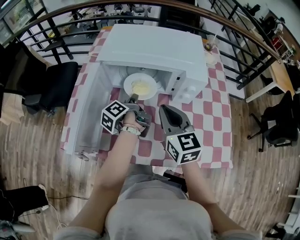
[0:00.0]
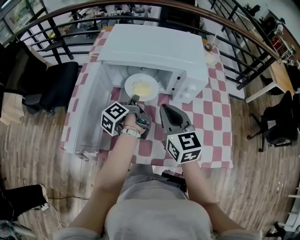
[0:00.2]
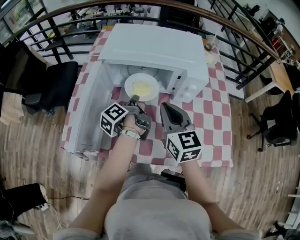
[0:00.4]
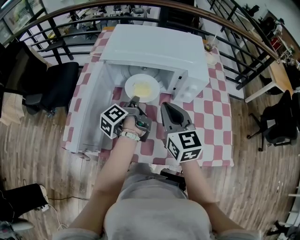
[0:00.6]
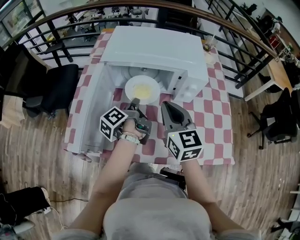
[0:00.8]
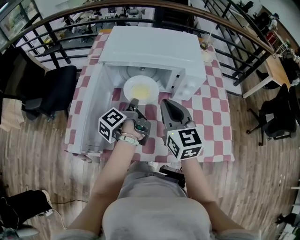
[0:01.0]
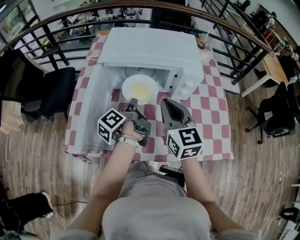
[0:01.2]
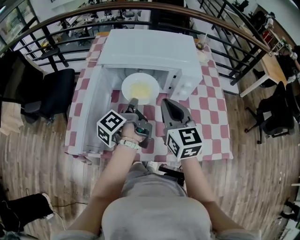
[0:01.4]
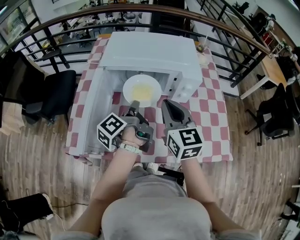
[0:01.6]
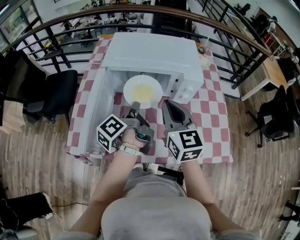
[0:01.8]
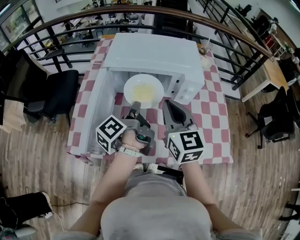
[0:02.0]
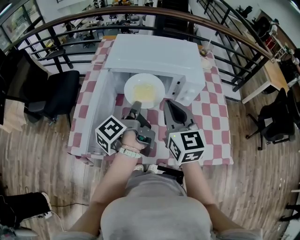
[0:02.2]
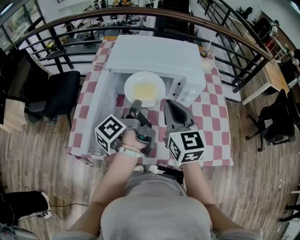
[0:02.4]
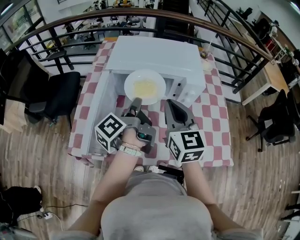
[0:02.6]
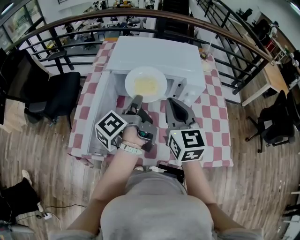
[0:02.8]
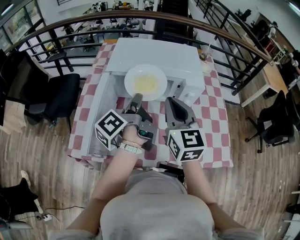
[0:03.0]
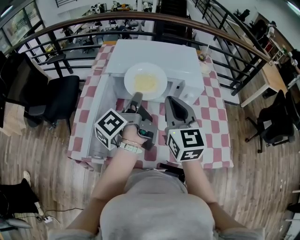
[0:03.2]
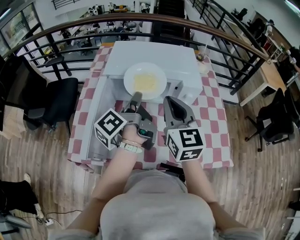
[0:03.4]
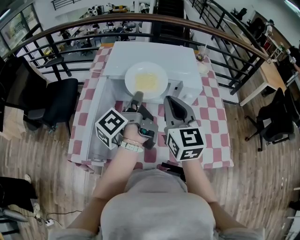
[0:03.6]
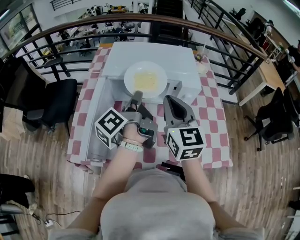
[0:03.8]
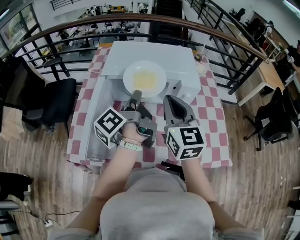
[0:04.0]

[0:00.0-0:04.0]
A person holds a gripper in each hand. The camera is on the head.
0:00.0 to 0:01.4: The left gripper heads upward and backward, covering approximately 10 cm.
0:01.4 to 0:02.6: The left gripper goes some 5 cm upward.
0:02.6 to 0:04.0: There are only small adjustments of the grippers.

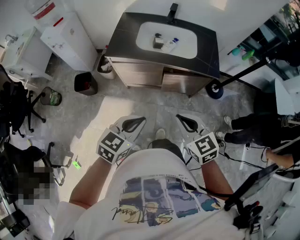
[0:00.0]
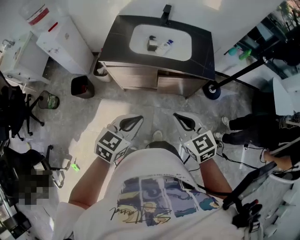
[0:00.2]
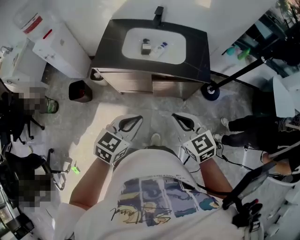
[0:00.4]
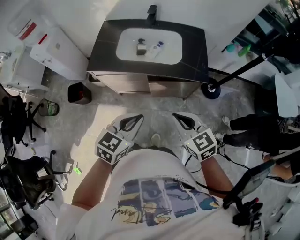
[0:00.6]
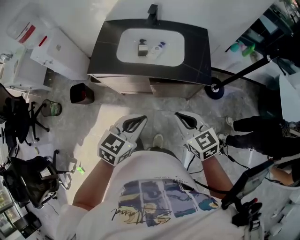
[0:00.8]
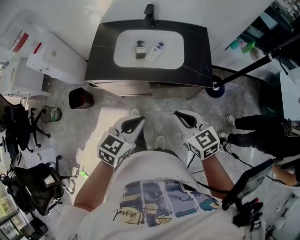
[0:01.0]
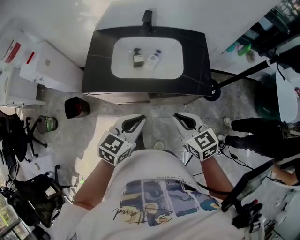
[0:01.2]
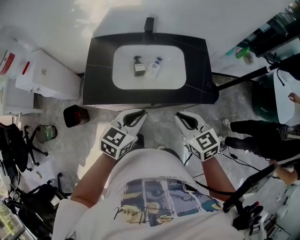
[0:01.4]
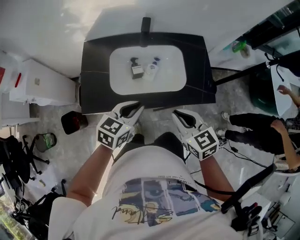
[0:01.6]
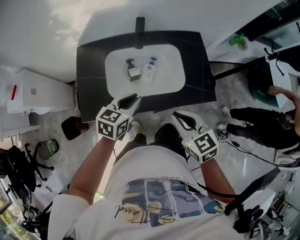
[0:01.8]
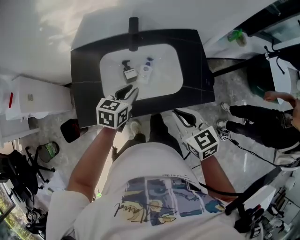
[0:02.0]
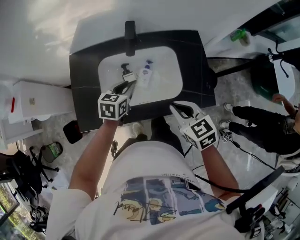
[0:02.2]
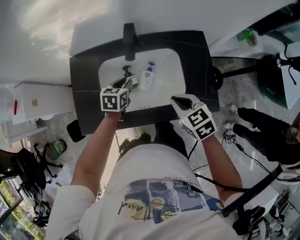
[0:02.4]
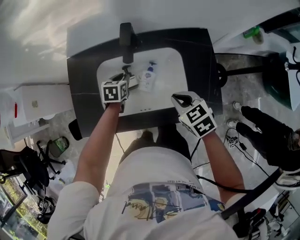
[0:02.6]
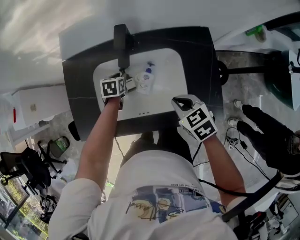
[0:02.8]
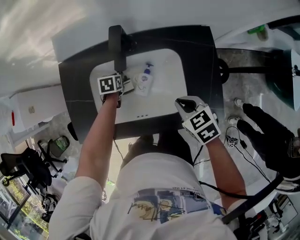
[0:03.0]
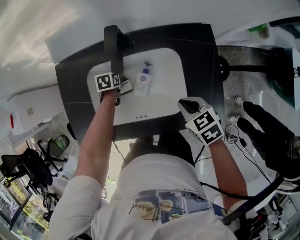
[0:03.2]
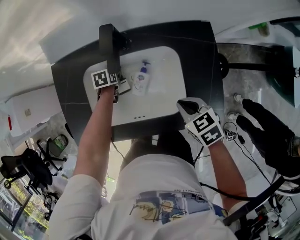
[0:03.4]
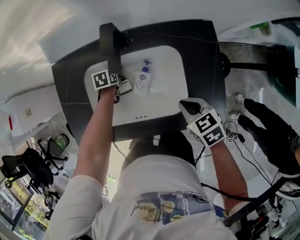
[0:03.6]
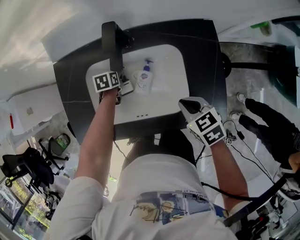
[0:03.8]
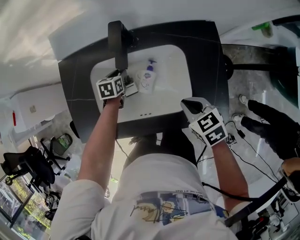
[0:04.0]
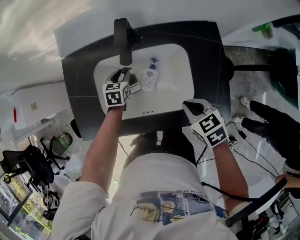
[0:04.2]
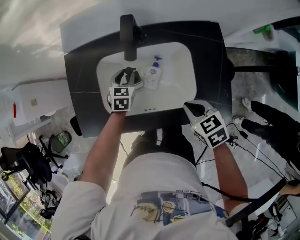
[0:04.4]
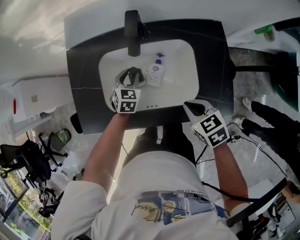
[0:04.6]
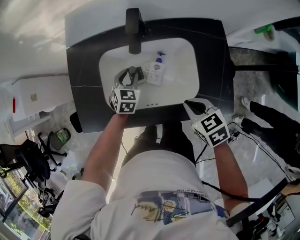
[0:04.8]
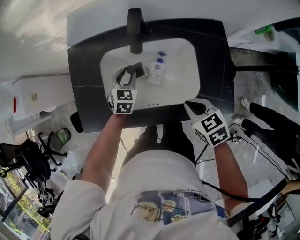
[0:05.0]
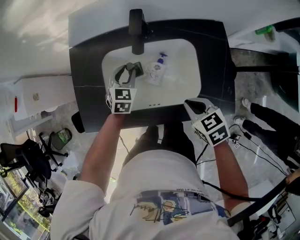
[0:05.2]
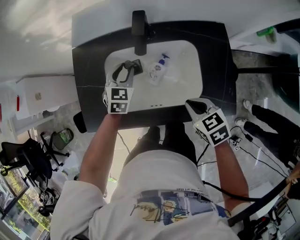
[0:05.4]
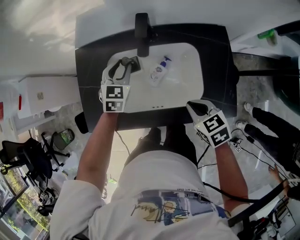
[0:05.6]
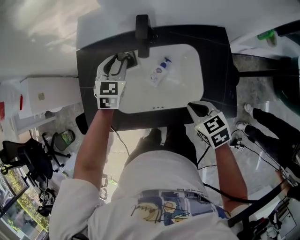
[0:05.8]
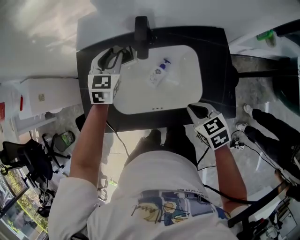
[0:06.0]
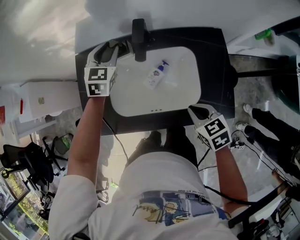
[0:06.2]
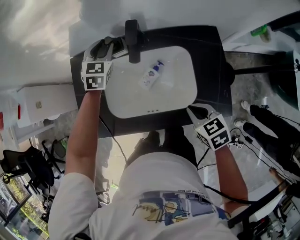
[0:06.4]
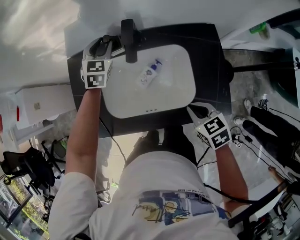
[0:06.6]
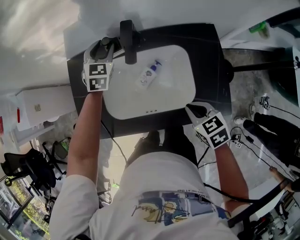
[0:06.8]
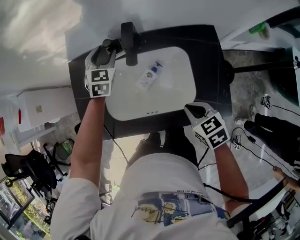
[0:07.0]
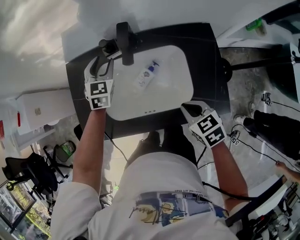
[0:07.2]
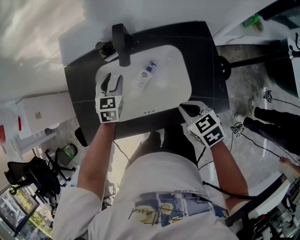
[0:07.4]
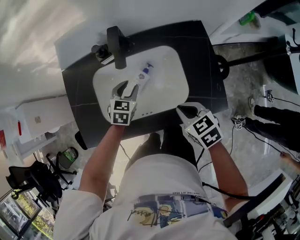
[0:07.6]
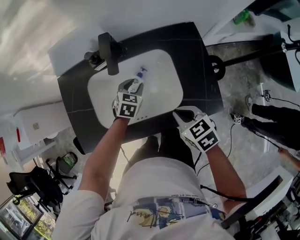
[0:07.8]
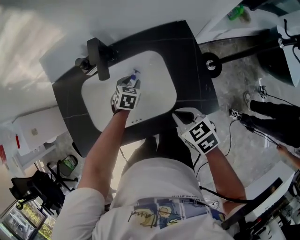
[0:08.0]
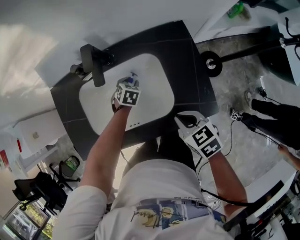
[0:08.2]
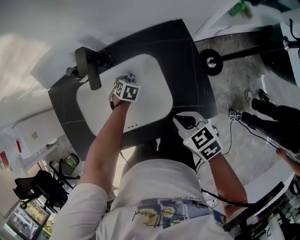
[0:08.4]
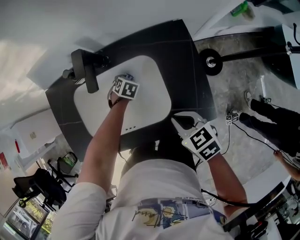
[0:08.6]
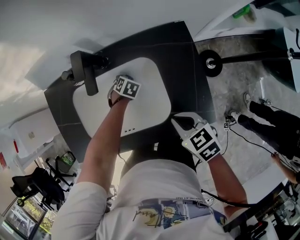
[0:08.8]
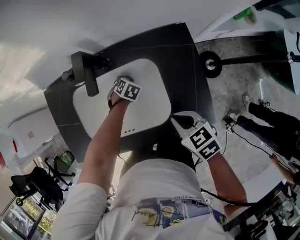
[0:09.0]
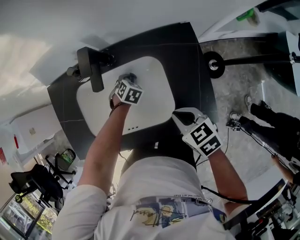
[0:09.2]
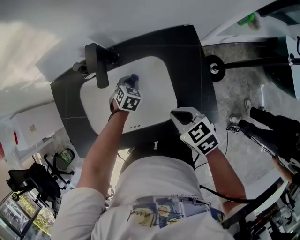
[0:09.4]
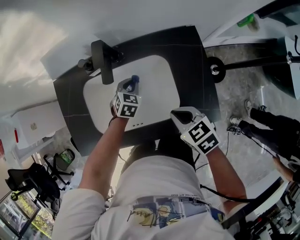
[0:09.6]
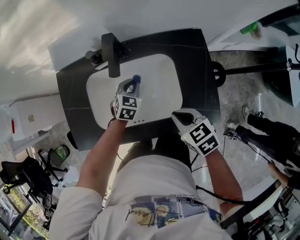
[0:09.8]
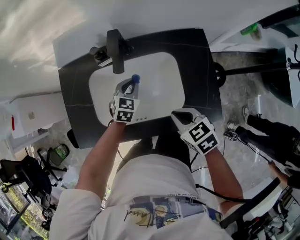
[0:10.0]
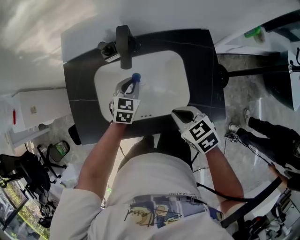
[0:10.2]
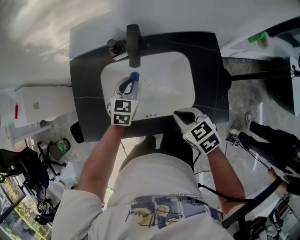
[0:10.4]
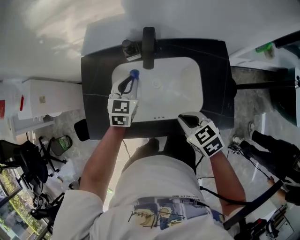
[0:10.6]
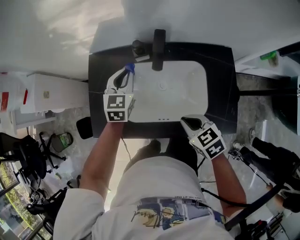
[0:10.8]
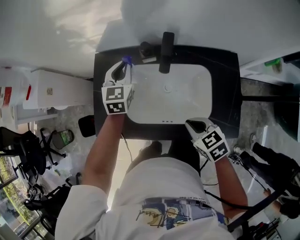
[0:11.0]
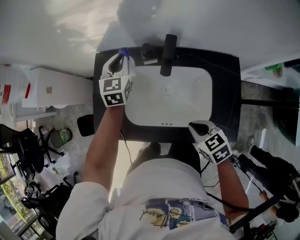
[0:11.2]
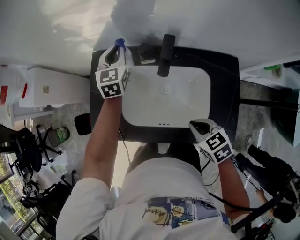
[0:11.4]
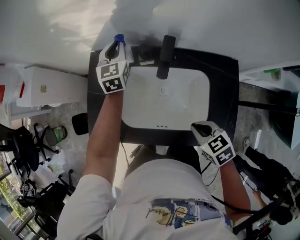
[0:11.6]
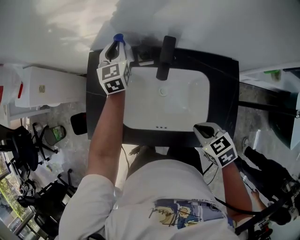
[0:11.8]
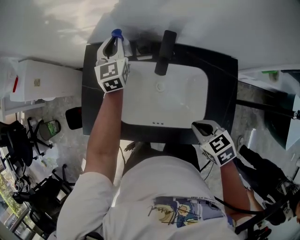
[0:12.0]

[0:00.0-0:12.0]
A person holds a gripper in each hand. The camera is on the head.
0:00.0 to 0:01.6: The grippers both shift forward by roughly 35 cm.
0:01.6 to 0:03.0: The left gripper travels forward and downward by roughly 40 cm, and tips its fingers downward by some 30 degrees. Meanwhile the right gripper travels forward, downward and to the right by some 25 cm, and swivels roughly 20 degrees.
0:03.0 to 0:04.4: The left gripper shifts some 5 cm upward, and rotates about 30 degrees.
0:04.4 to 0:06.0: The left gripper travels upward and forward by some 20 cm.
0:06.0 to 0:07.6: The left gripper shifts roughly 20 cm downward, backward and to the right.
0:07.6 to 0:09.0: The left gripper moves downward, approximately 15 cm, tilts its fingers some 30 degrees downward, and closes. The right gripper ends up some 5 cm from where it was.
0:09.0 to 0:10.4: The right gripper changes place by some 10 cm. Meanwhile the left gripper travels upward by approximately 20 cm, and angles its fingers upward, by approximately 40 degrees.
0:10.4 to 0:12.0: The left gripper moves forward and upward, about 25 cm, and rotates approximately 40 degrees.

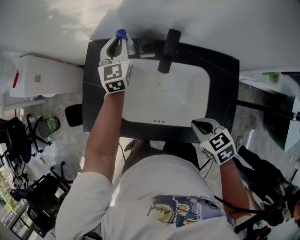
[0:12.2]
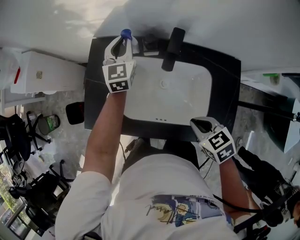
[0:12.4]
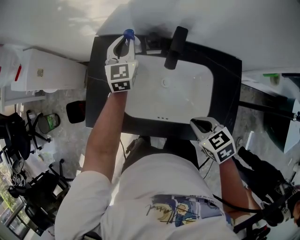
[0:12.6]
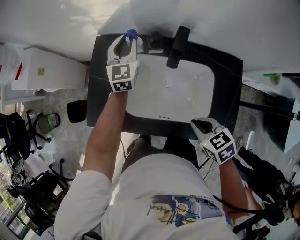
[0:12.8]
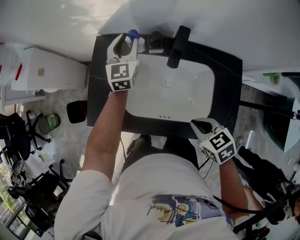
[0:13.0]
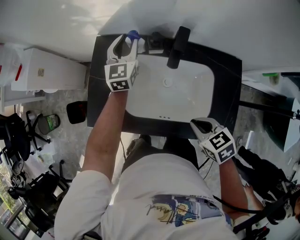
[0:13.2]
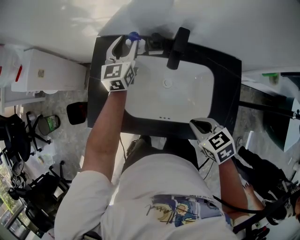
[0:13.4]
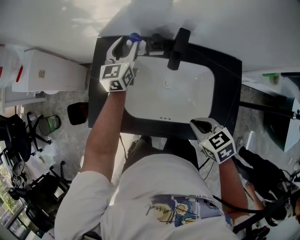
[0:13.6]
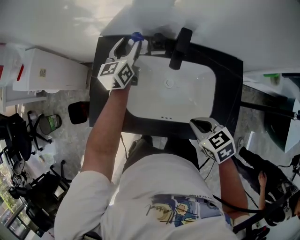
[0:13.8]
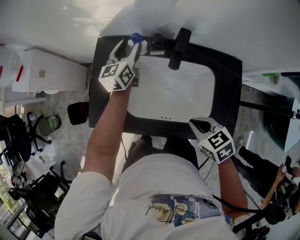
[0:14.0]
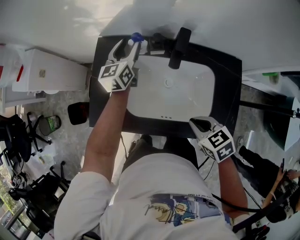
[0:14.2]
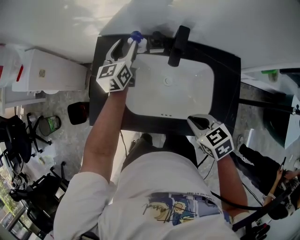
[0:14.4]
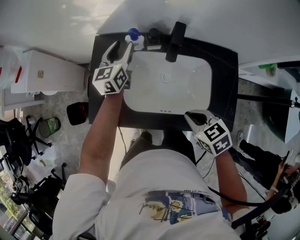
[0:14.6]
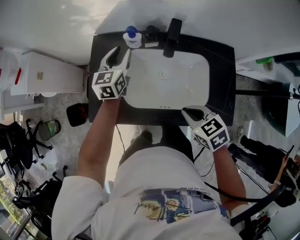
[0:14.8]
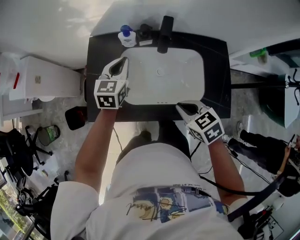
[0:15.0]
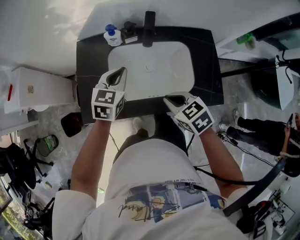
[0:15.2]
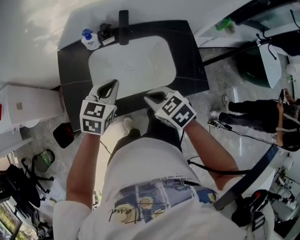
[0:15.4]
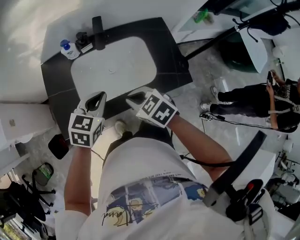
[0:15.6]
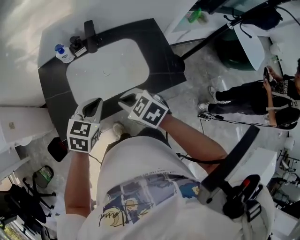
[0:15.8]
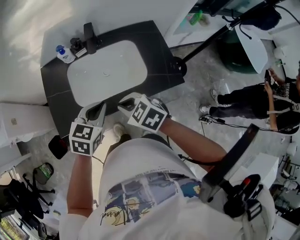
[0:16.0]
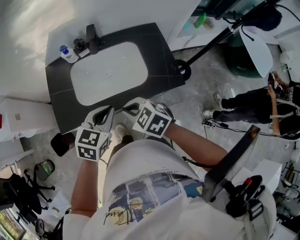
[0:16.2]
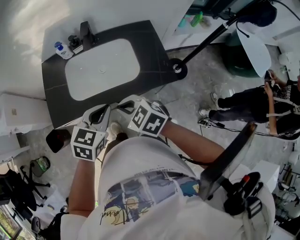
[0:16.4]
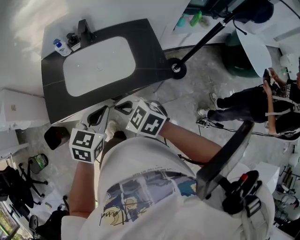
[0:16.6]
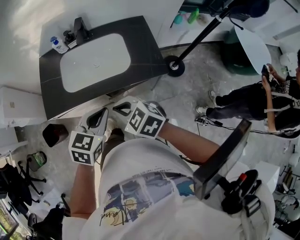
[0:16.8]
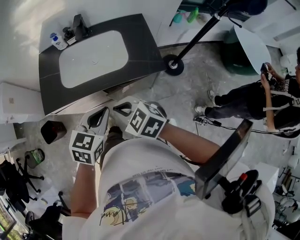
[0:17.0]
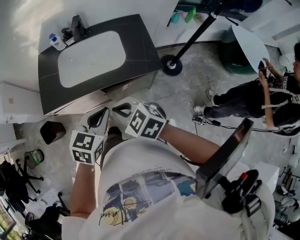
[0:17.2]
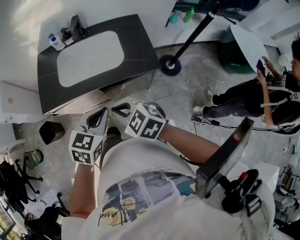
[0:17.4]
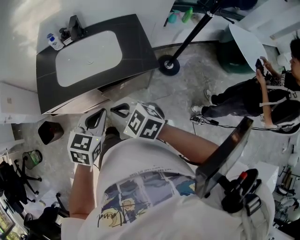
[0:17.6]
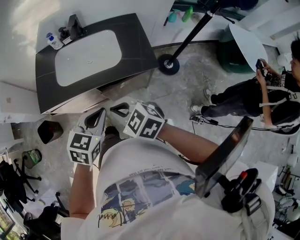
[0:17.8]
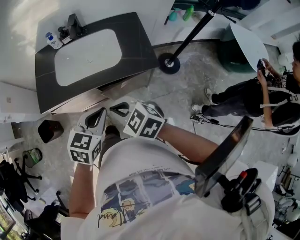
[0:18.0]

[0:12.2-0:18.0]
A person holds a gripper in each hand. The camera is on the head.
0:12.2 to 0:13.6: The left gripper opens.
0:13.6 to 0:15.0: The right gripper heads to the left, covering about 5 cm. Meanwhile the left gripper shifts about 10 cm backward, and closes its fingers.
0:15.0 to 0:16.6: The right gripper moves backward, approximately 15 cm. The left gripper travels backward and to the right by roughly 40 cm, and swivels approximately 30 degrees.
0:16.6 to 0:18.0: Both grippers travel together backward, some 10 cm.

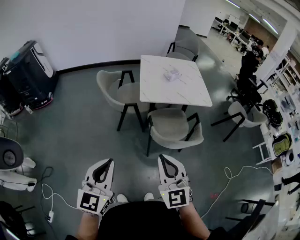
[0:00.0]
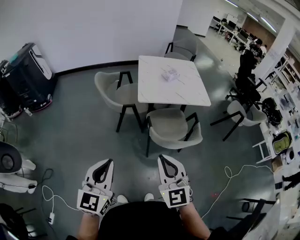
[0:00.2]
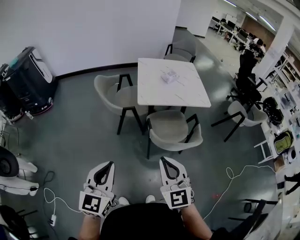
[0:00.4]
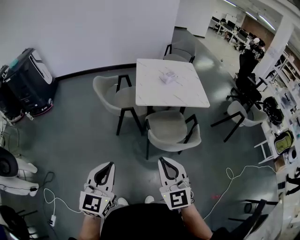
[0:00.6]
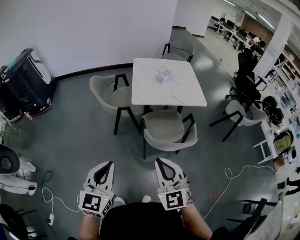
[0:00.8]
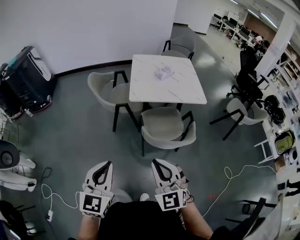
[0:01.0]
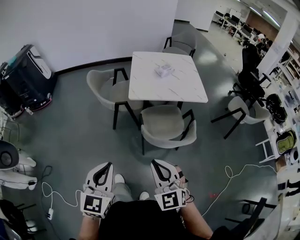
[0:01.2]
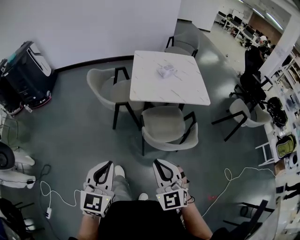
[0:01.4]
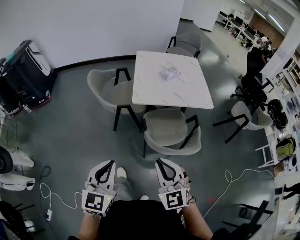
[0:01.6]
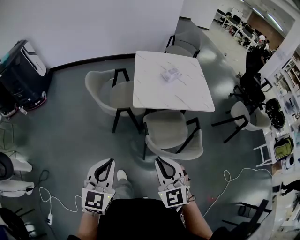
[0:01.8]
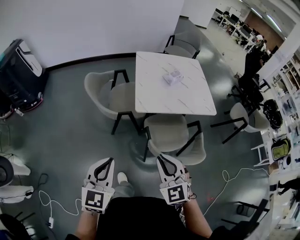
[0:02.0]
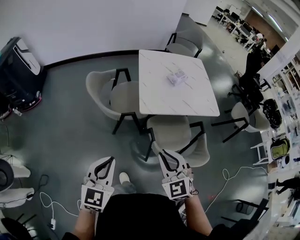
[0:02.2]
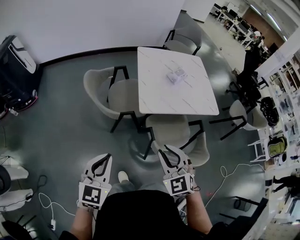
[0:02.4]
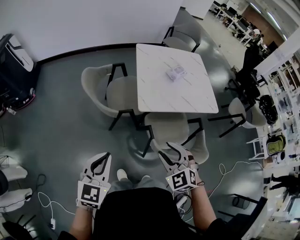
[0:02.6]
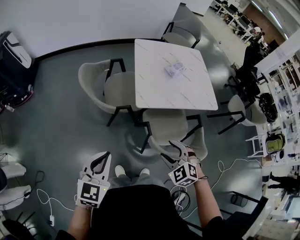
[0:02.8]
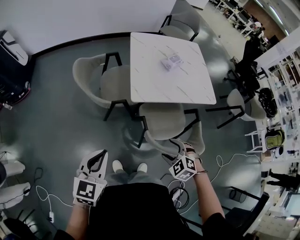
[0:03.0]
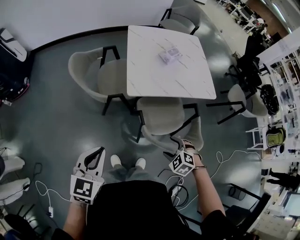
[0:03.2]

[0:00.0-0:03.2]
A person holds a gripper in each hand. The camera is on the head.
0:00.0 to 0:01.6: The left gripper shifts about 15 cm forward, to the right and downward, while the right gripper shifts about 15 cm to the right, forward and downward.
0:01.6 to 0:03.2: The right gripper goes approximately 25 cm downward and forward, tilts its fingers approximately 50 degrees downward, and opens its fingers, while the left gripper moves forward, downward and to the left, about 20 cm.
